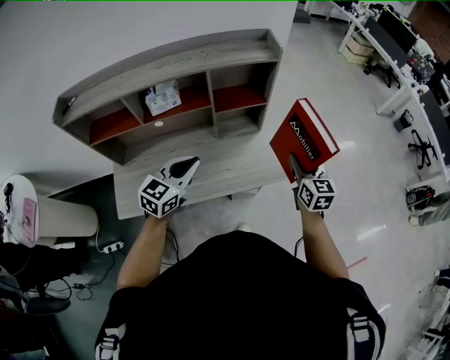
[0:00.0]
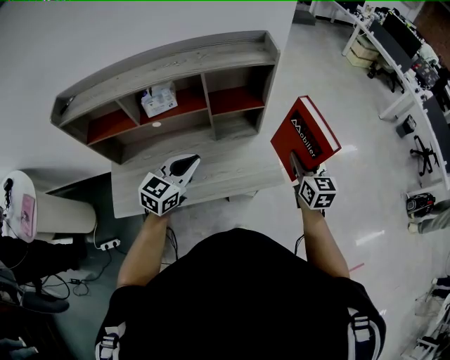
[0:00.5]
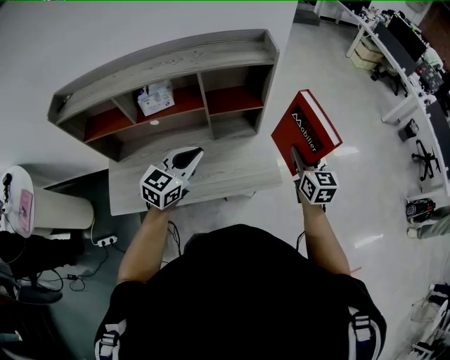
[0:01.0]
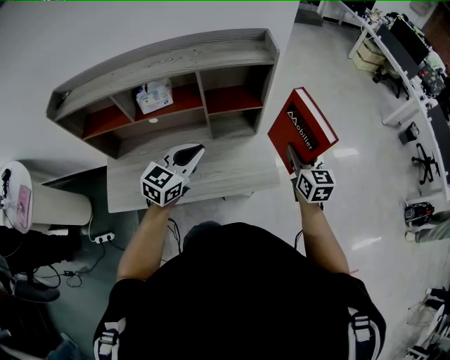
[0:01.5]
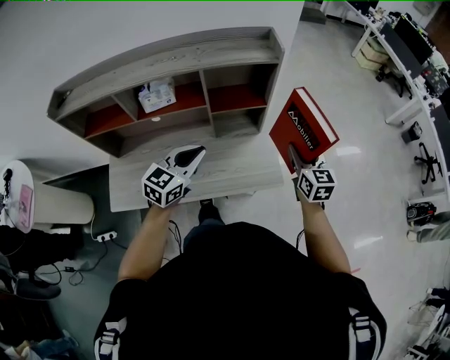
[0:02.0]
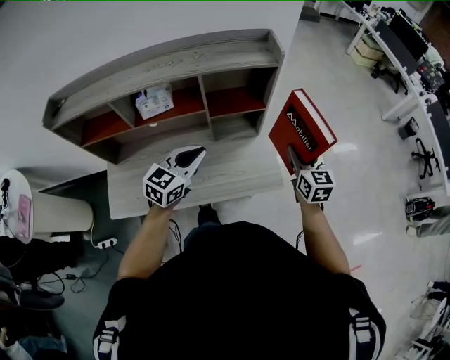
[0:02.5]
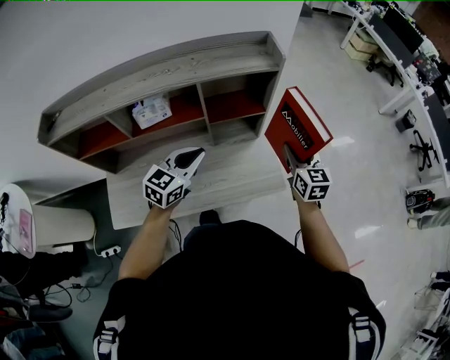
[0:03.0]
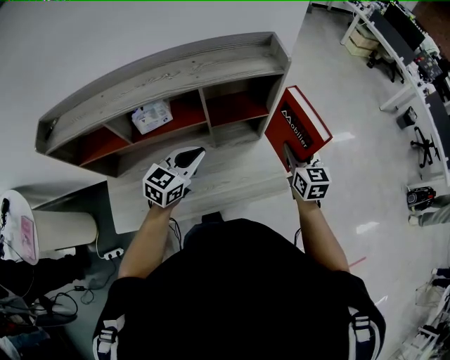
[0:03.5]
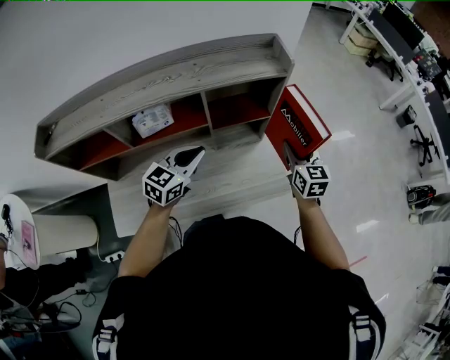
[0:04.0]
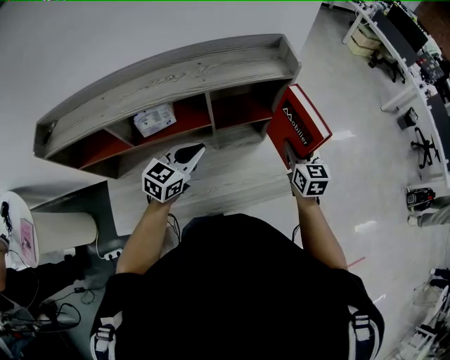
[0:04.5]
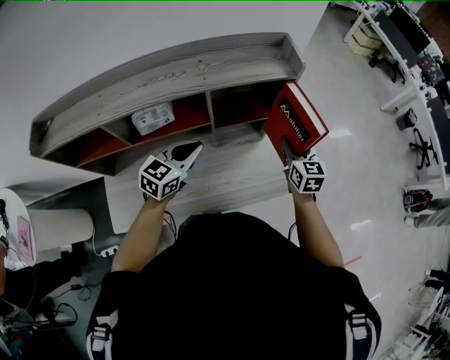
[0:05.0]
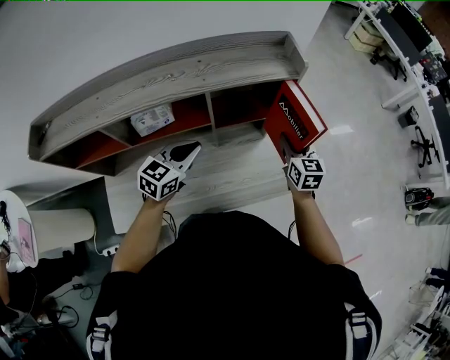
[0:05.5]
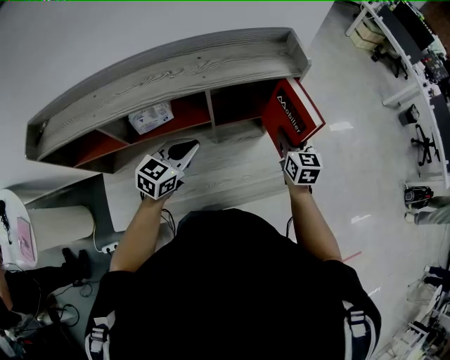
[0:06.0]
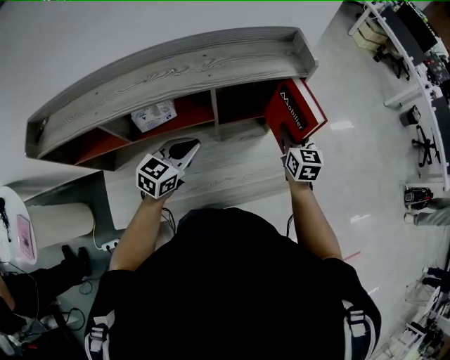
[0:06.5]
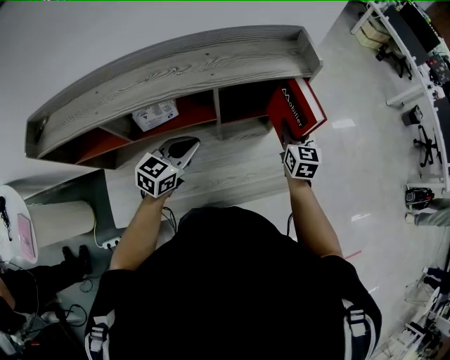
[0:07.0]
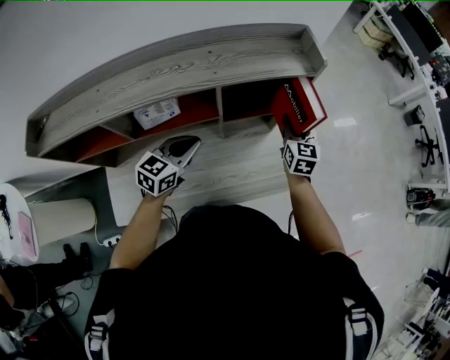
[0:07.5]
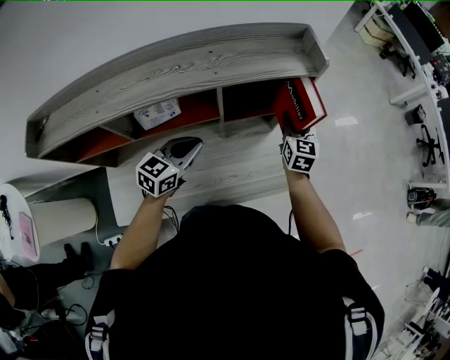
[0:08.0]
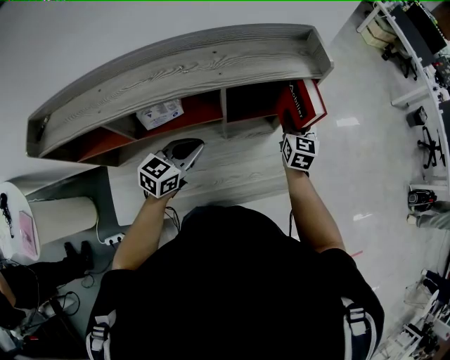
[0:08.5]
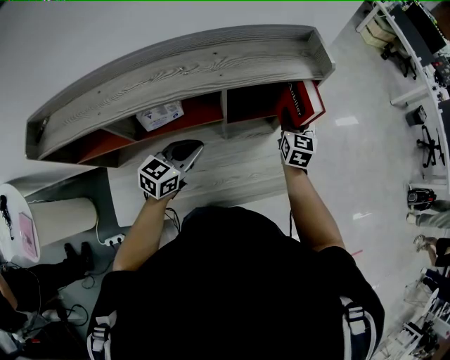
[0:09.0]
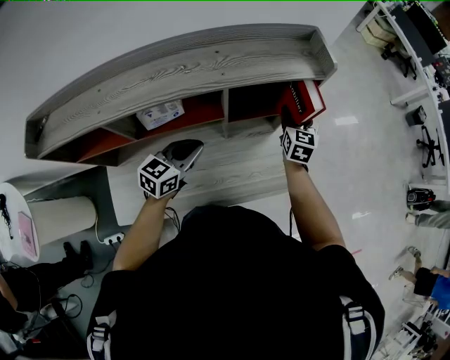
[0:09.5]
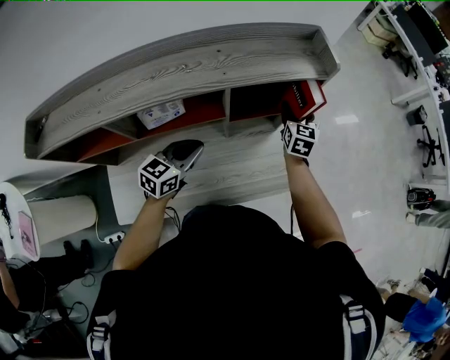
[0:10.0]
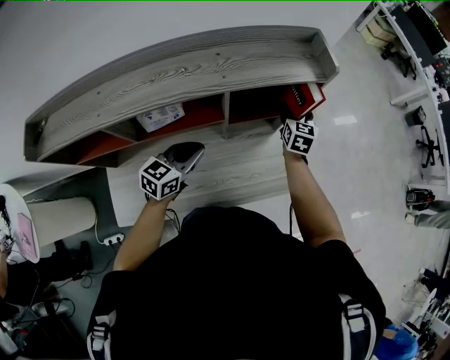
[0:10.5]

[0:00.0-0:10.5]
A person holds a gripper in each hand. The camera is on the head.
0:00.0 to 0:02.0: Both grippers travel together forward, roughly 5 cm.
0:02.0 to 0:04.0: The left gripper goes some 10 cm forward and to the left, while the right gripper moves to the left and forward, roughly 10 cm.
0:04.0 to 0:06.5: The right gripper heads forward and to the left, covering approximately 10 cm, while the left gripper moves about 5 cm.
0:06.5 to 0:08.5: The right gripper moves about 5 cm.
0:08.5 to 0:10.5: The right gripper changes place by approximately 5 cm, and opens up.

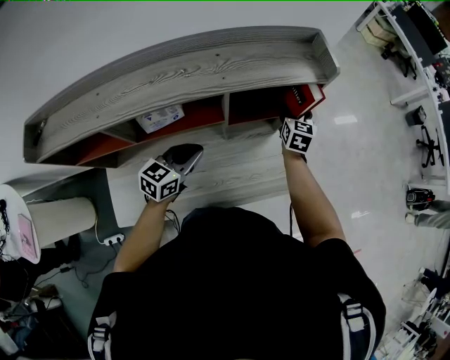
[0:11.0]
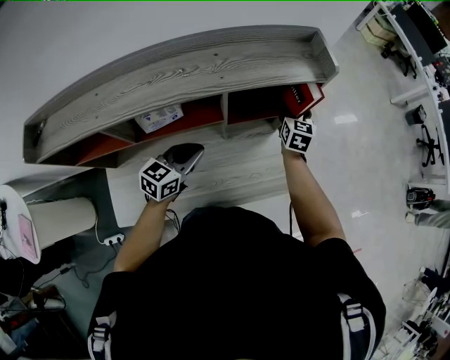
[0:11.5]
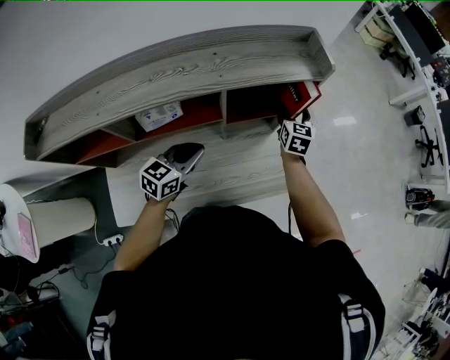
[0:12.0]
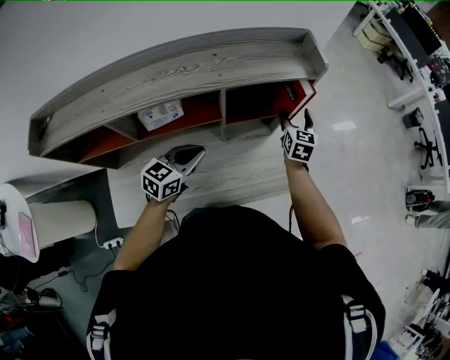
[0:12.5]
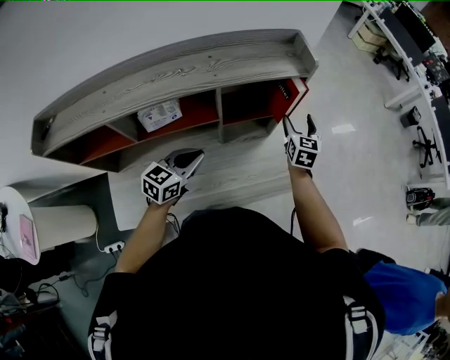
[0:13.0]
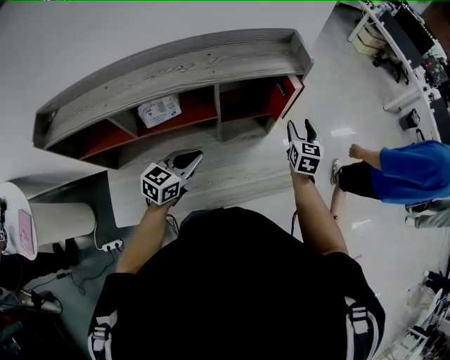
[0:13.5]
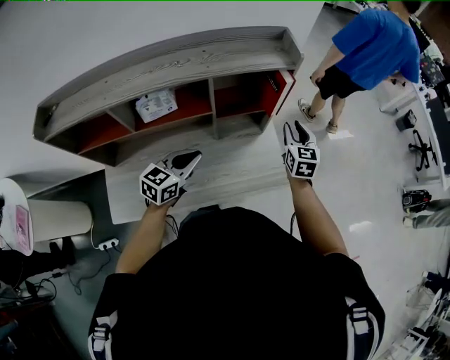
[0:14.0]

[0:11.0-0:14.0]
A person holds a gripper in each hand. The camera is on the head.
0:11.0 to 0:12.5: The right gripper ends up some 5 cm from where it was.
0:12.5 to 0:14.0: The left gripper moves some 5 cm. The right gripper heads backward and to the right, covering about 10 cm, and closes up.

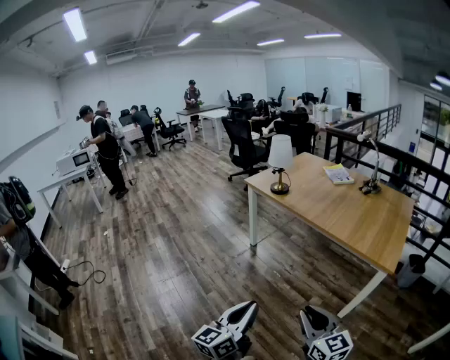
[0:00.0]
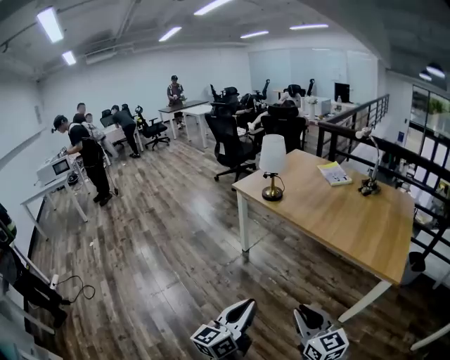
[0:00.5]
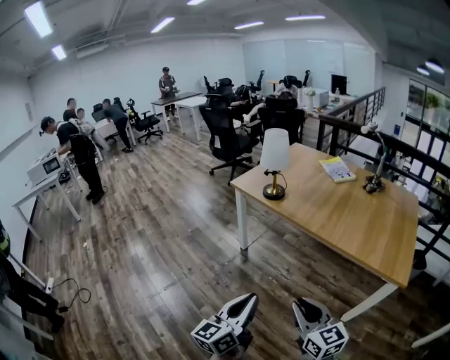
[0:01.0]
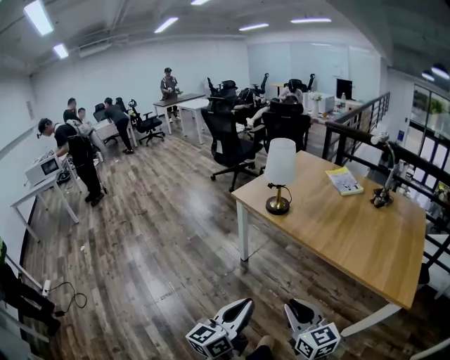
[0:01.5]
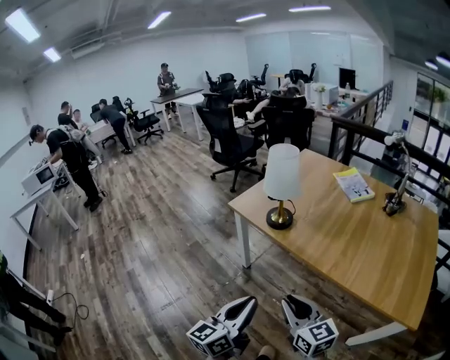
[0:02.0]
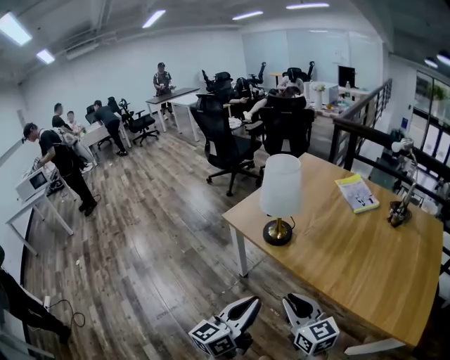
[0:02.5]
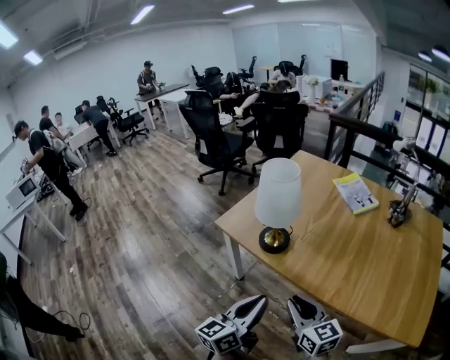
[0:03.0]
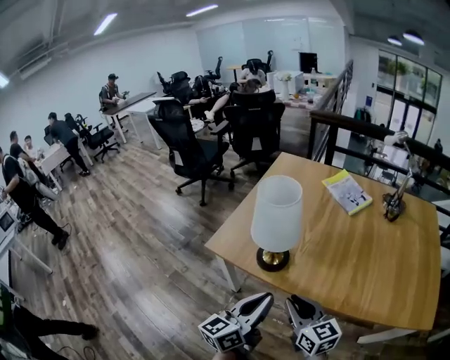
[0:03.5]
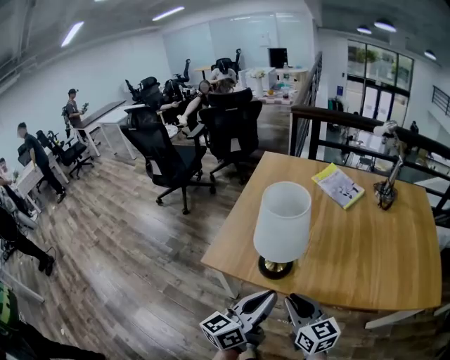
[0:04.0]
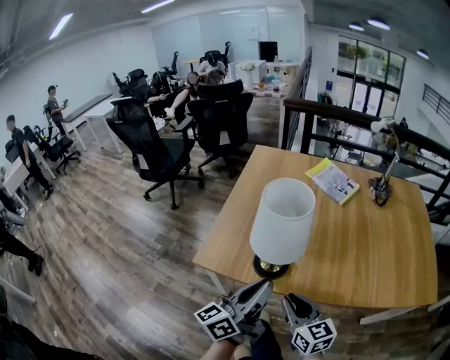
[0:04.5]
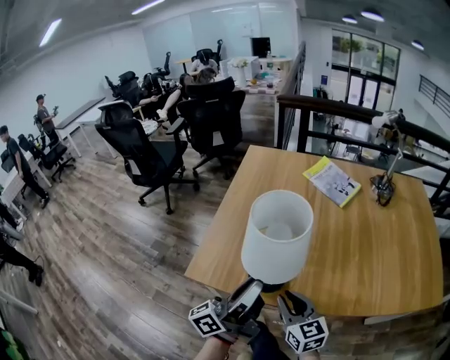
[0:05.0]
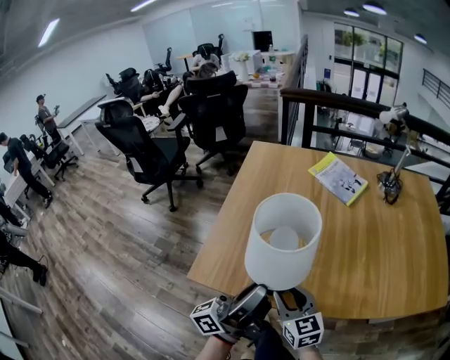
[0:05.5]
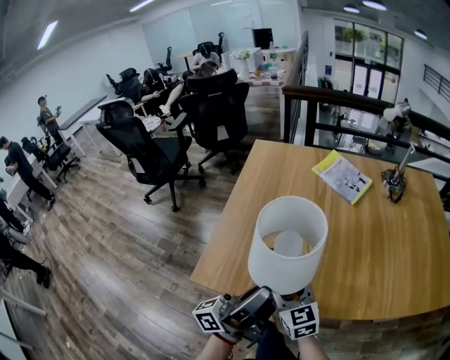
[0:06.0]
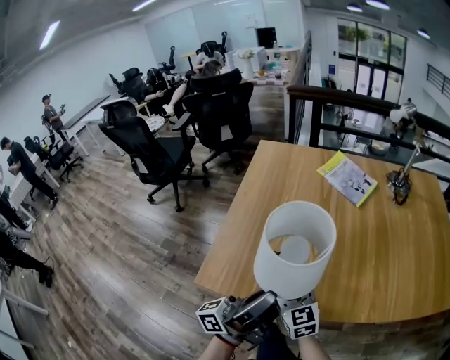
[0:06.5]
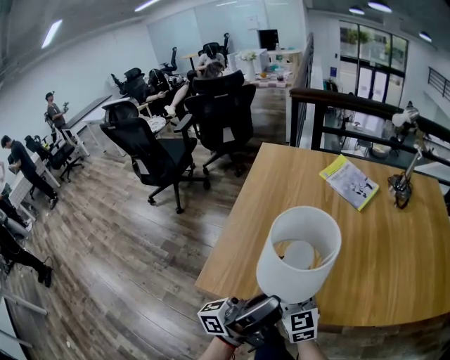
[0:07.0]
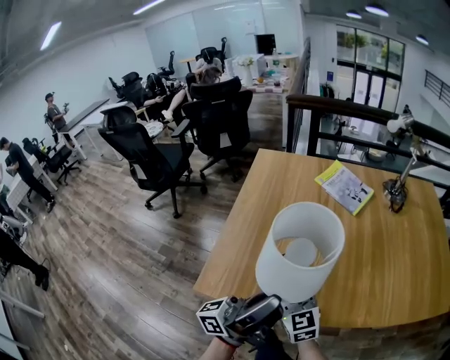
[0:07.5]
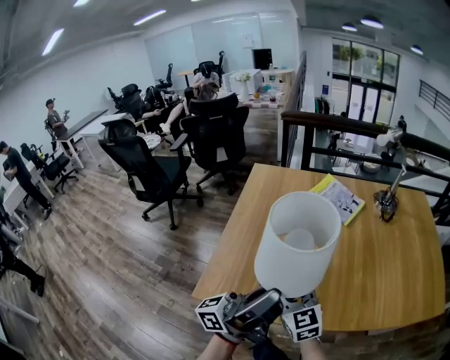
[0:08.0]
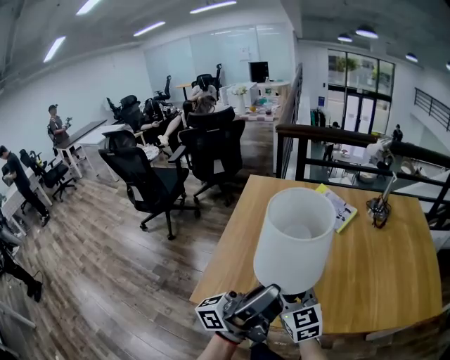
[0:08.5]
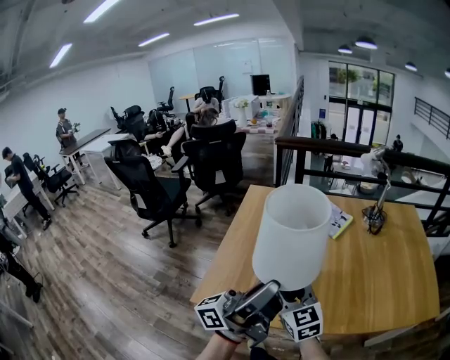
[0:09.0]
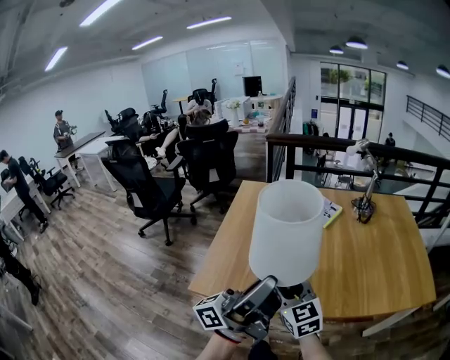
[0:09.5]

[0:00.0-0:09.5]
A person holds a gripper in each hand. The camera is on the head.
0:00.0 to 0:02.0: The two grippers travel together, forward, approximately 50 cm.
0:02.0 to 0:04.0: The left gripper shifts by about 30 cm, and changes its angle by some 30 degrees. Meanwhile the right gripper shifts by about 30 cm, and turns by about 30 degrees.
0:04.0 to 0:05.5: The left gripper travels forward by some 10 cm, and swivels some 40 degrees. The right gripper moves forward and downward, approximately 10 cm.
0:05.5 to 0:07.5: The right gripper heads forward, covering about 5 cm.
0:07.5 to 0:09.5: The right gripper moves upward, to the right and backward, approximately 15 cm, while the left gripper is displaced upward, backward and to the right by some 15 cm.

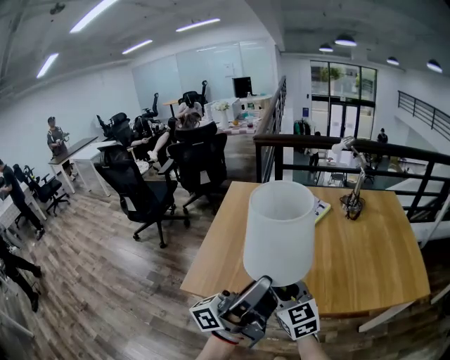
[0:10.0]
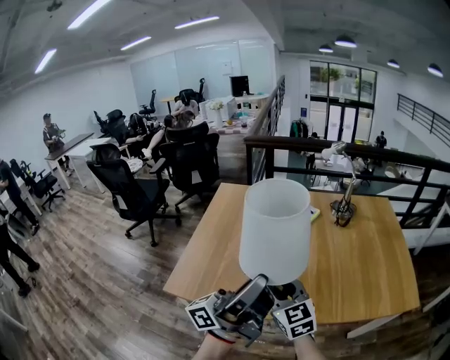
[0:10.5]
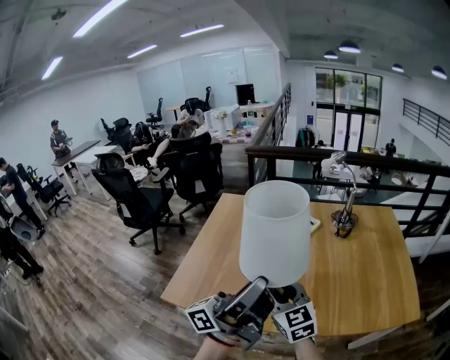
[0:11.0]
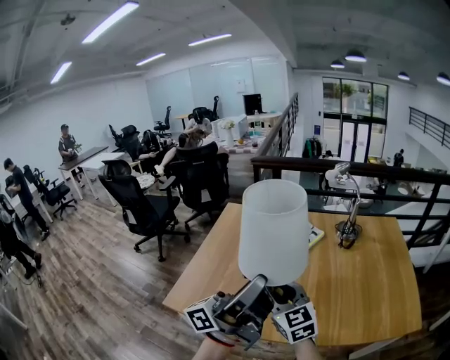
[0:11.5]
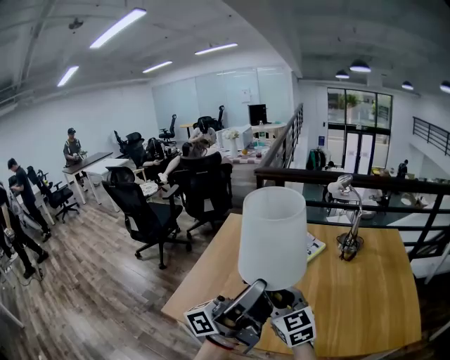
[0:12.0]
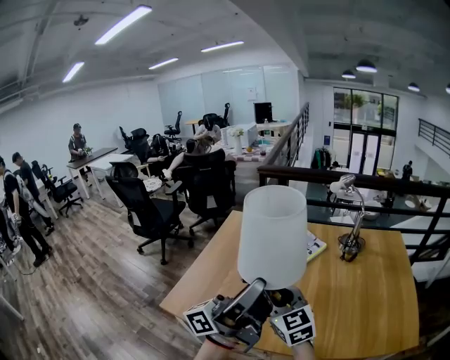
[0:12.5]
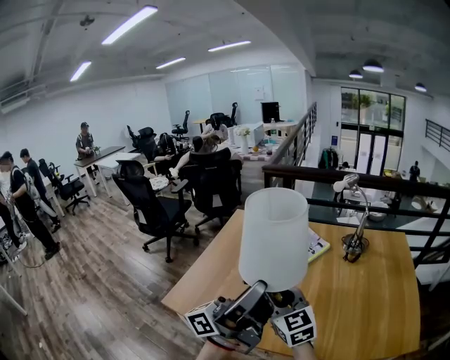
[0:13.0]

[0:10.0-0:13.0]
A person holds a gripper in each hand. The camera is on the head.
0:10.0 to 0:11.5: The grippers both shift forward, to the right and upward by approximately 10 cm.
0:11.5 to 0:13.0: There are only small adjustments of the grippers.
